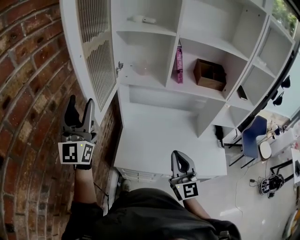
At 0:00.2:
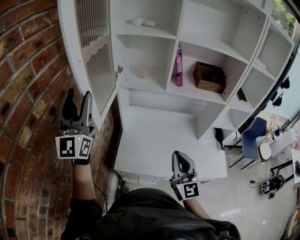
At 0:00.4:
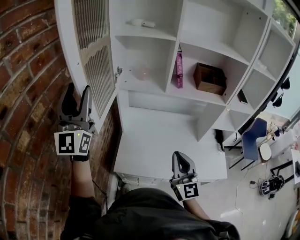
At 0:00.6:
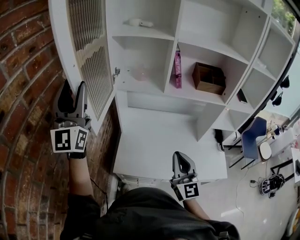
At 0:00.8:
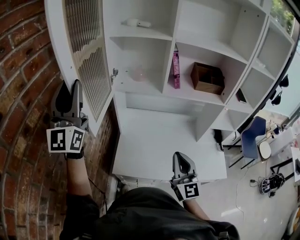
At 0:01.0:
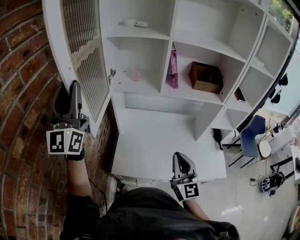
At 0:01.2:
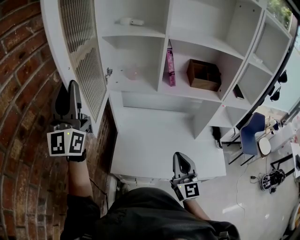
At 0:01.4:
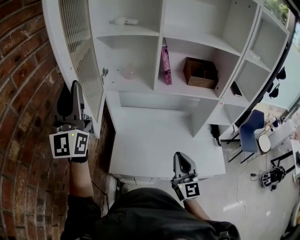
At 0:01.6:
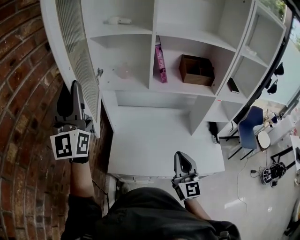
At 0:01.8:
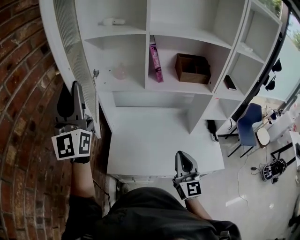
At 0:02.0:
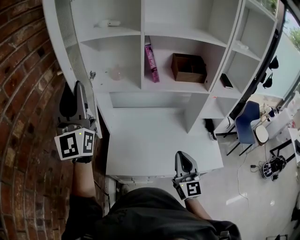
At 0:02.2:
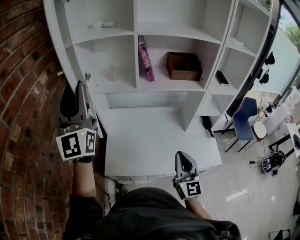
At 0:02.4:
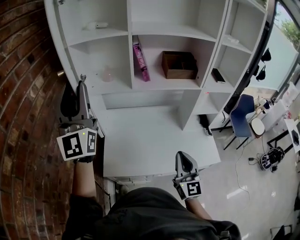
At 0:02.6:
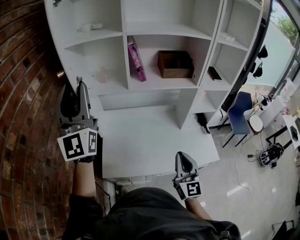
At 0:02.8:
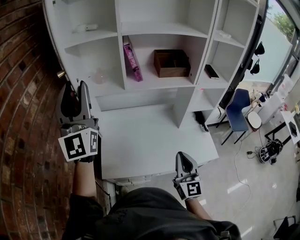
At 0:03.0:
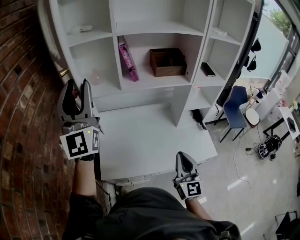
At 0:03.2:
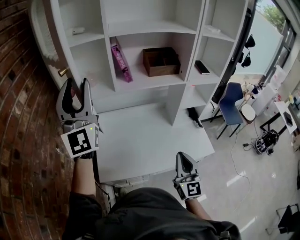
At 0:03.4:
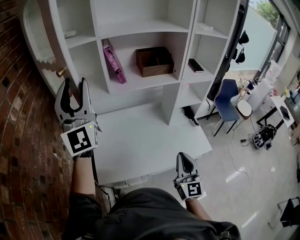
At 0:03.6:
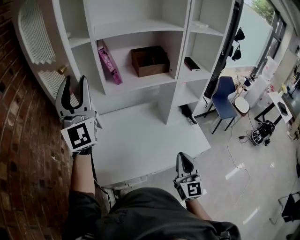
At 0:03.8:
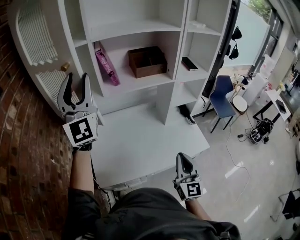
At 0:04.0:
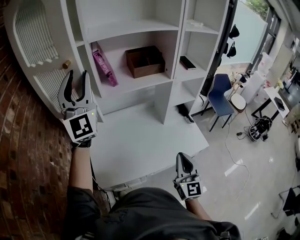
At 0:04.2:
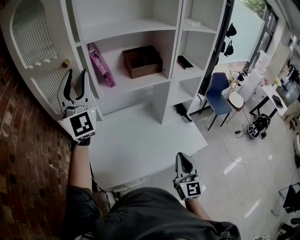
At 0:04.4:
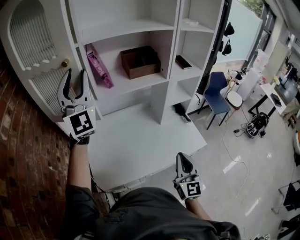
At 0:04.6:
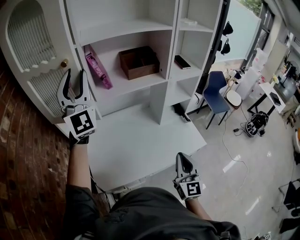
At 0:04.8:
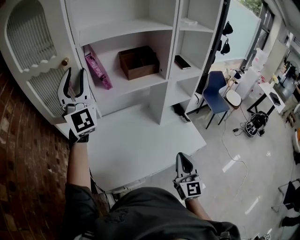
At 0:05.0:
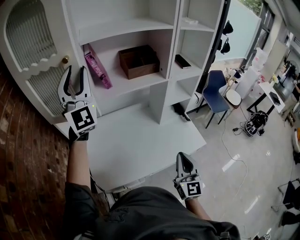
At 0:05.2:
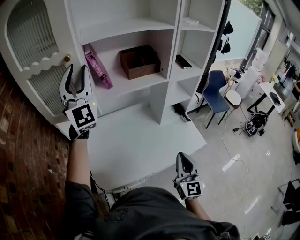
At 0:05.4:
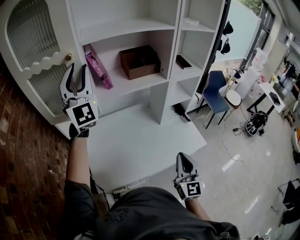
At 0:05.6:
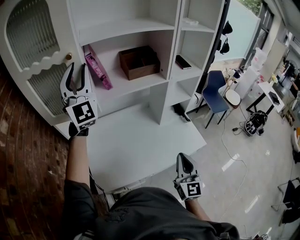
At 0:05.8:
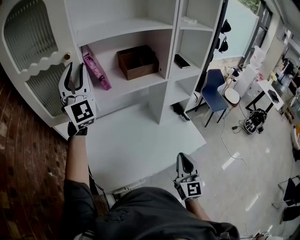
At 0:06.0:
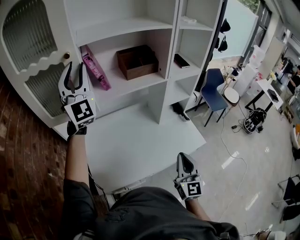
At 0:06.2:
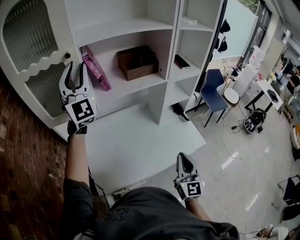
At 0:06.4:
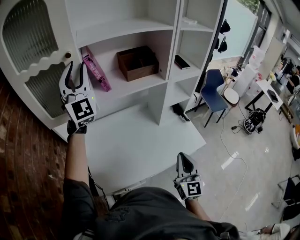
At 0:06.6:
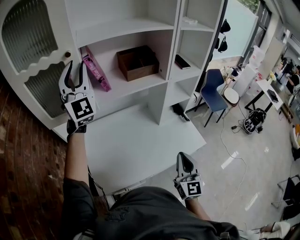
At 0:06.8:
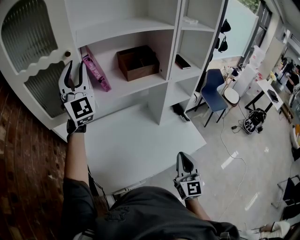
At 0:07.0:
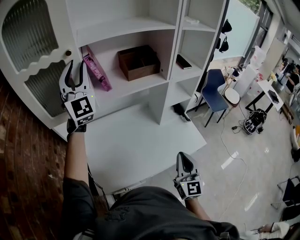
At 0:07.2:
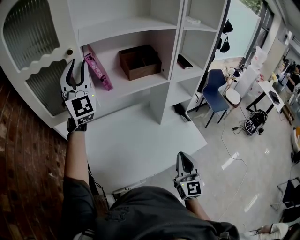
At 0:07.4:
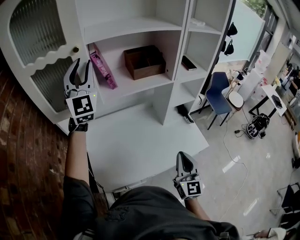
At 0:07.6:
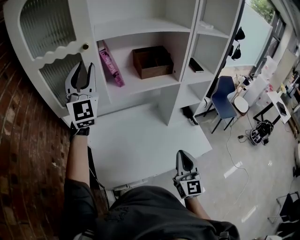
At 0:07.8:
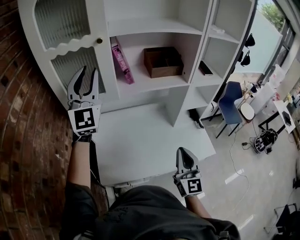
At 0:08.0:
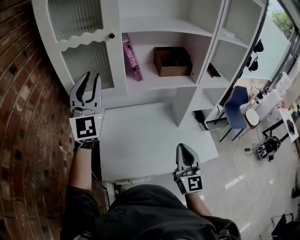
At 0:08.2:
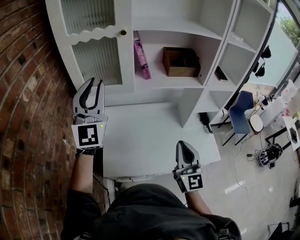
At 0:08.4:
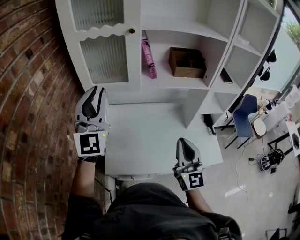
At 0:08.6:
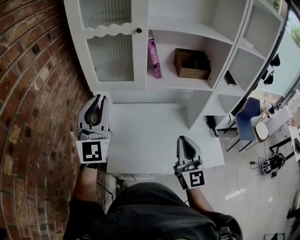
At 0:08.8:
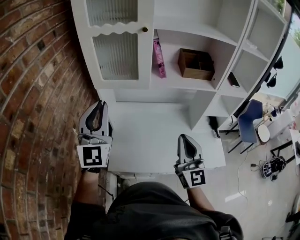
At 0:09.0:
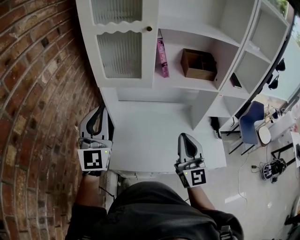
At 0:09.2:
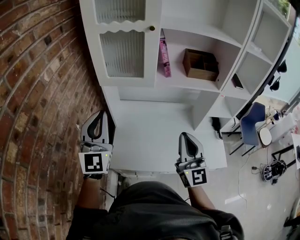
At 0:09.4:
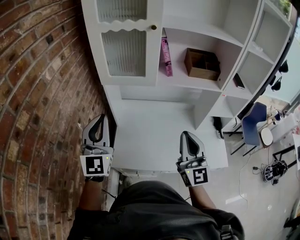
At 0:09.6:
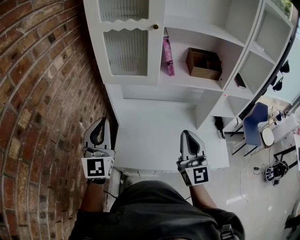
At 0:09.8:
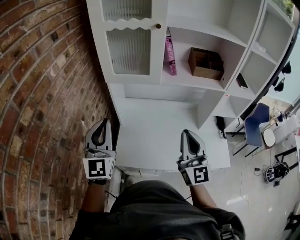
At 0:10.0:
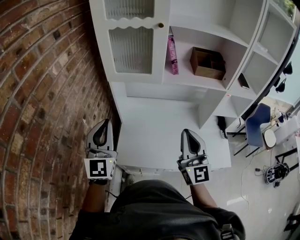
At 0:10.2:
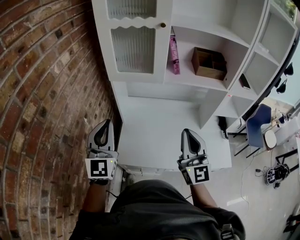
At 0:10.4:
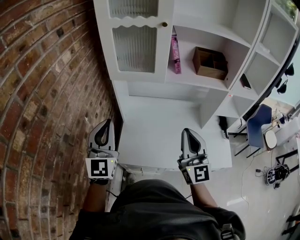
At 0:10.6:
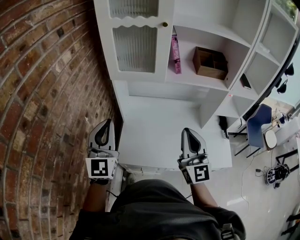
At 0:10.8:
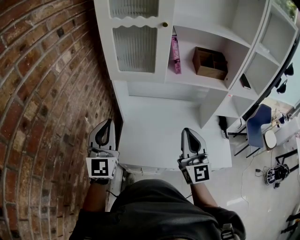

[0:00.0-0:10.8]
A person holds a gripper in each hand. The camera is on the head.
0:00.0 to 0:01.6: The right gripper moves to the right, some 10 cm. Meanwhile the left gripper moves to the right and upward, about 10 cm, and closes its fingers.
0:01.6 to 0:03.0: The left gripper heads to the right, covering about 10 cm. Meanwhile the right gripper travels to the right by some 10 cm.
0:03.0 to 0:04.6: The right gripper changes place by roughly 5 cm, while the left gripper moves forward and to the right, about 15 cm.
0:04.6 to 0:06.2: The left gripper heads forward, covering some 5 cm.
0:06.2 to 0:07.8: The right gripper goes about 5 cm to the left. Meanwhile the left gripper travels backward by approximately 5 cm.
0:07.8 to 0:09.2: The left gripper is displaced backward, downward and to the left by some 25 cm, while the right gripper heads to the left and upward, covering about 10 cm, and turns by about 20 degrees.
0:09.2 to 0:10.8: The left gripper moves approximately 5 cm.

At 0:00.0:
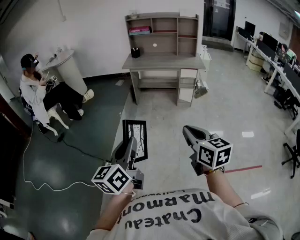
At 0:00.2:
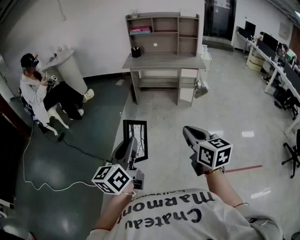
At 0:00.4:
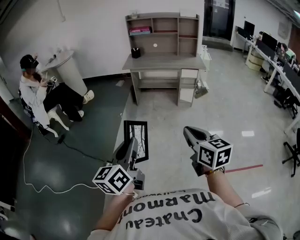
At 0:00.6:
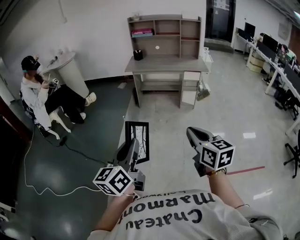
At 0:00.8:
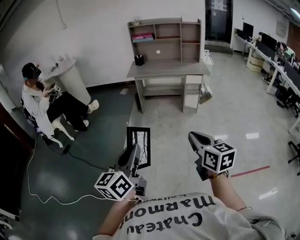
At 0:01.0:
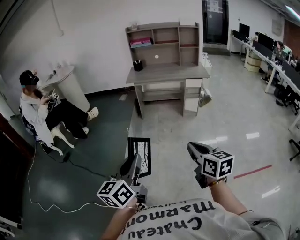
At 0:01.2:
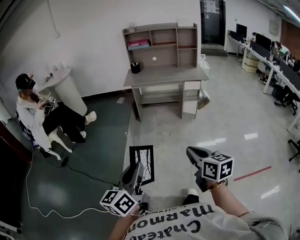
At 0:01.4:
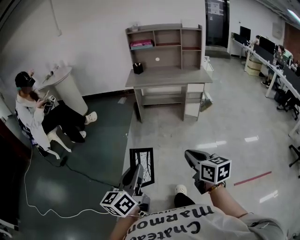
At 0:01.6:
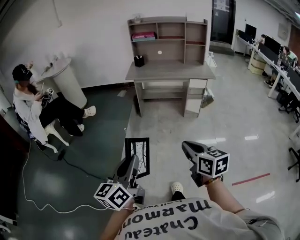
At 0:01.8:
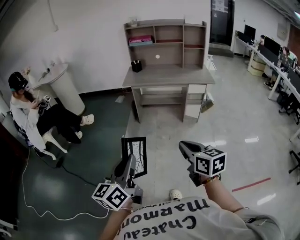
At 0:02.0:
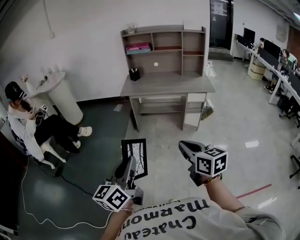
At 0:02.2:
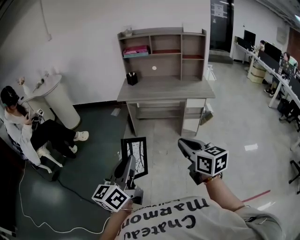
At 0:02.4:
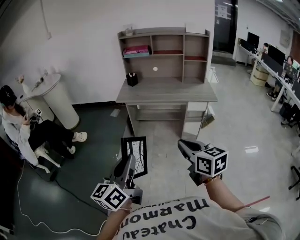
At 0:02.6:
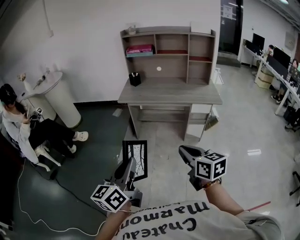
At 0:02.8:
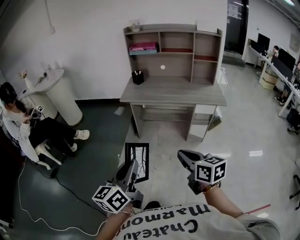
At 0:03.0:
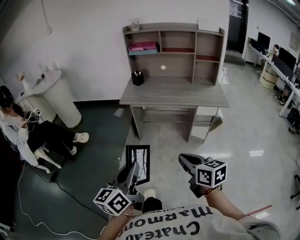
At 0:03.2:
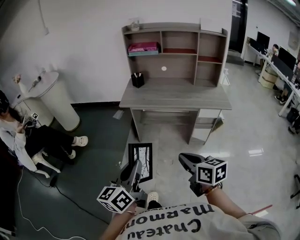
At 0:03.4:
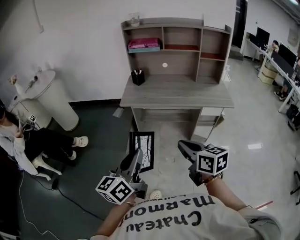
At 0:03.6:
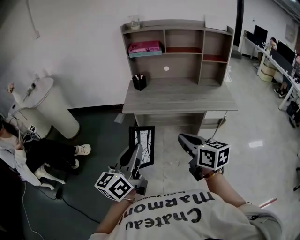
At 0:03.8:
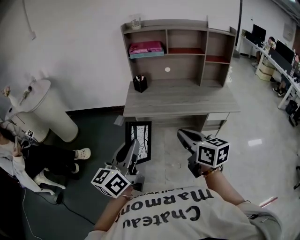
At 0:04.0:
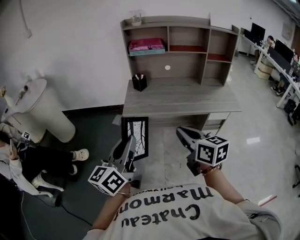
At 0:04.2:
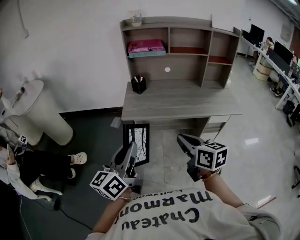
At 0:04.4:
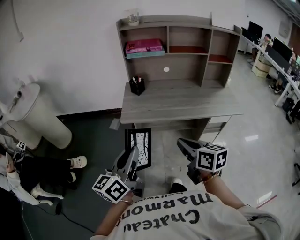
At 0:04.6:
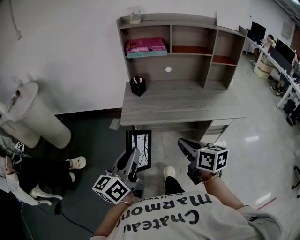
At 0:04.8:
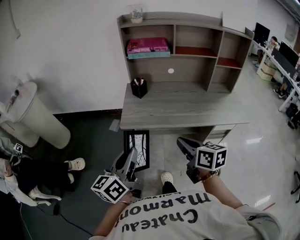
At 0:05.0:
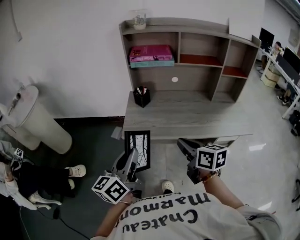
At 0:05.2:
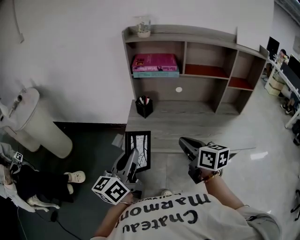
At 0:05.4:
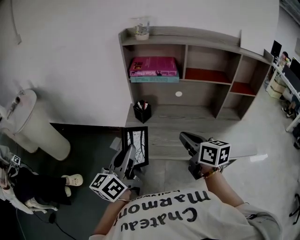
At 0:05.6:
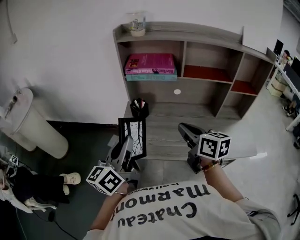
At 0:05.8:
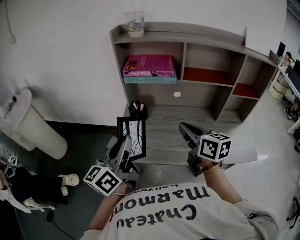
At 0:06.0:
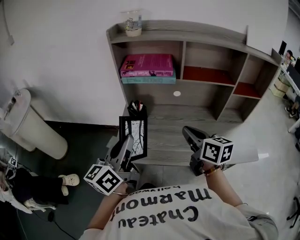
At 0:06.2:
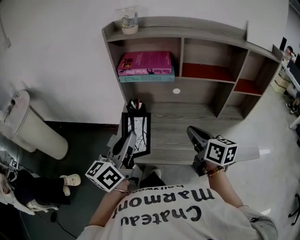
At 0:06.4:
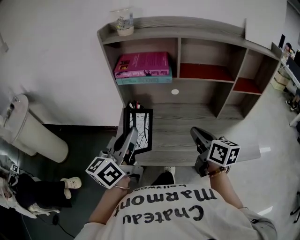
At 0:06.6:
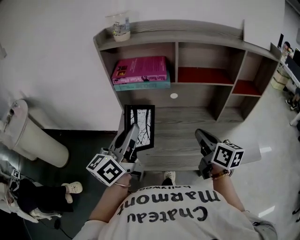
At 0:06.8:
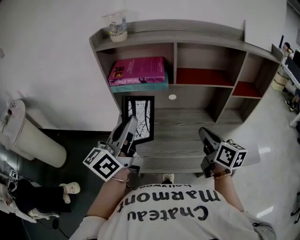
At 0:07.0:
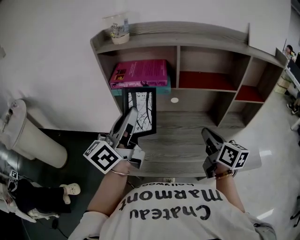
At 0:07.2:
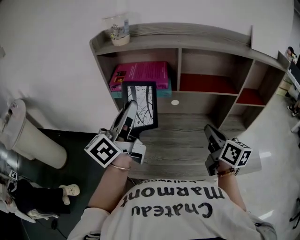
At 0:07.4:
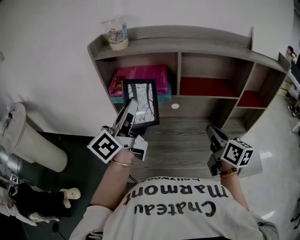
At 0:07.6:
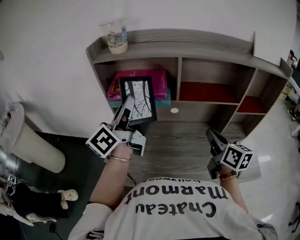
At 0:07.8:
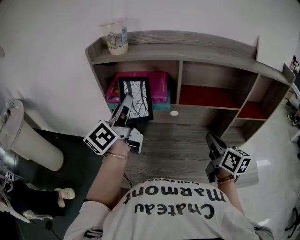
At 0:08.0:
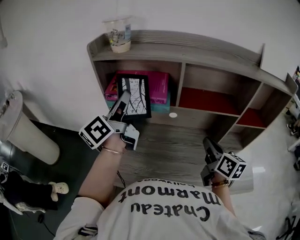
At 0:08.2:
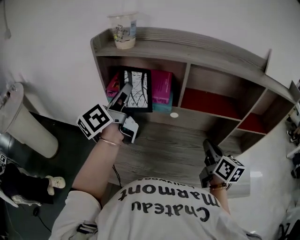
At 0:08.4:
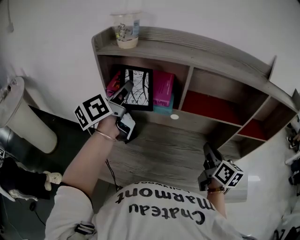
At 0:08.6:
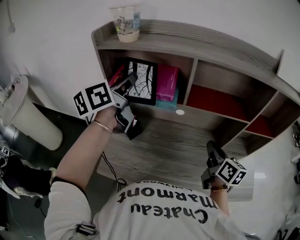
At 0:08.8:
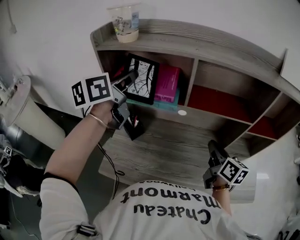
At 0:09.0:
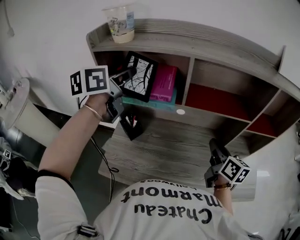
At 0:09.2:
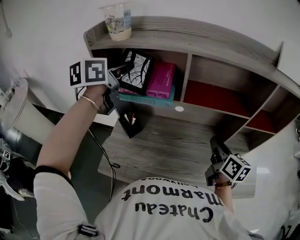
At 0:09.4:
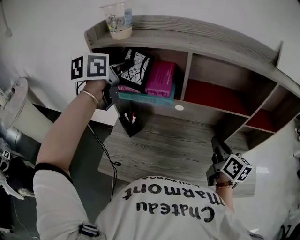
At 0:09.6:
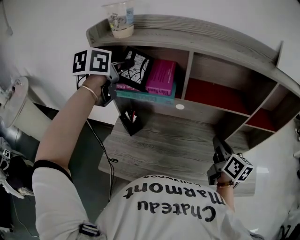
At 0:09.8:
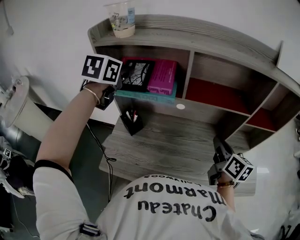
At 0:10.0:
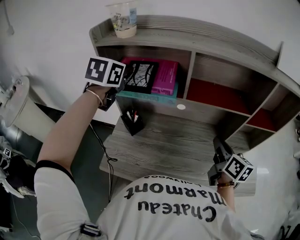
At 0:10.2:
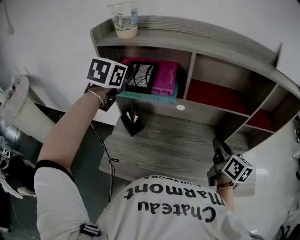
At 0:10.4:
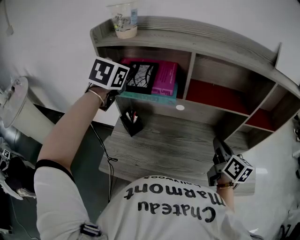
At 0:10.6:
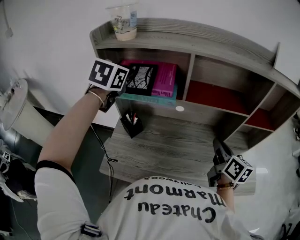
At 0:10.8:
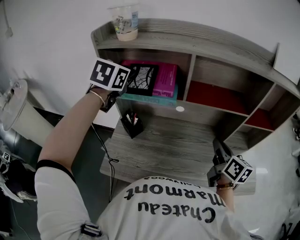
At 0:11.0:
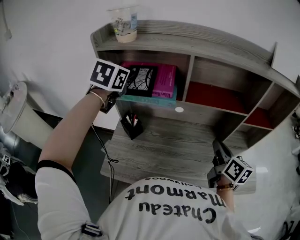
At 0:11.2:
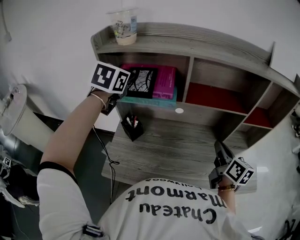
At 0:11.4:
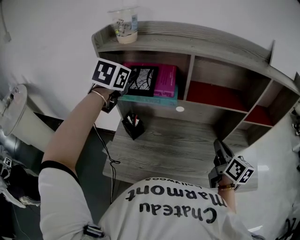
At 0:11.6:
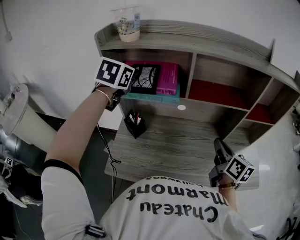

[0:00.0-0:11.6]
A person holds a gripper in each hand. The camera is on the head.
0:00.0 to 0:01.4: The right gripper is displaced forward, to the left and downward by approximately 15 cm. Meanwhile the left gripper moves to the left, forward and downward, approximately 15 cm.
0:01.4 to 0:02.8: Both grippers move forward, some 30 cm.
0:02.8 to 0:04.4: Both grippers travel together forward, about 35 cm.
0:04.4 to 0:05.8: Both grippers move forward, some 30 cm.
0:05.8 to 0:07.2: The left gripper heads forward, upward and to the right, covering some 20 cm. The right gripper shifts roughly 15 cm to the right and forward.
0:07.2 to 0:08.8: The left gripper is displaced forward by about 15 cm, and rotates about 30 degrees; the right gripper goes roughly 10 cm forward and downward.
0:08.8 to 0:10.2: The left gripper moves approximately 5 cm, rotates approximately 40 degrees, and opens, then closes again.
0:10.2 to 0:11.6: The grippers make only small movements.

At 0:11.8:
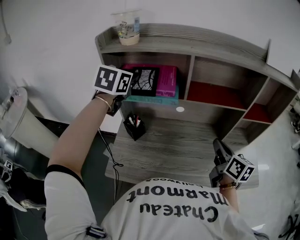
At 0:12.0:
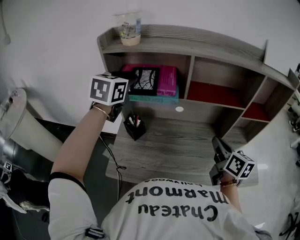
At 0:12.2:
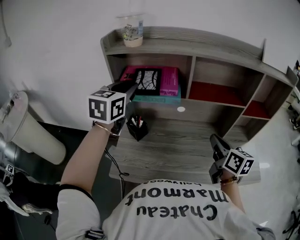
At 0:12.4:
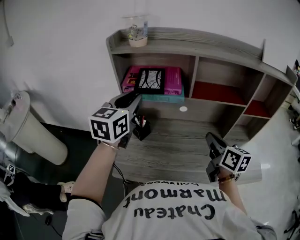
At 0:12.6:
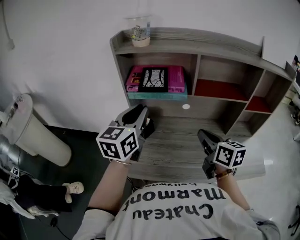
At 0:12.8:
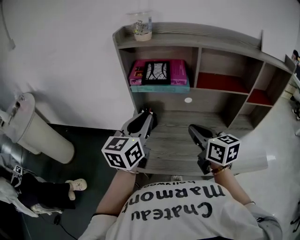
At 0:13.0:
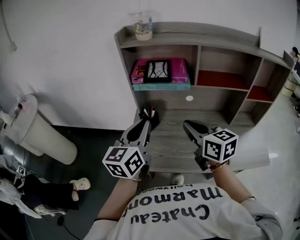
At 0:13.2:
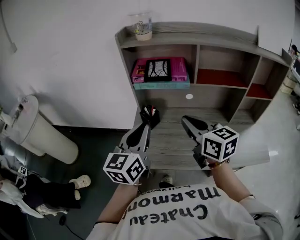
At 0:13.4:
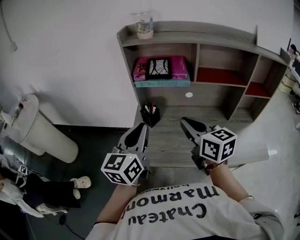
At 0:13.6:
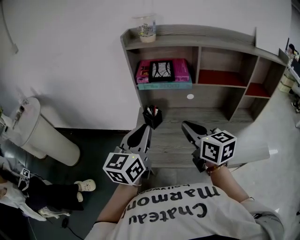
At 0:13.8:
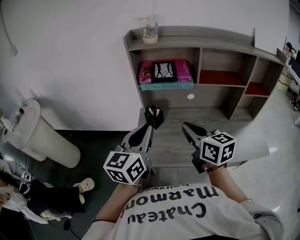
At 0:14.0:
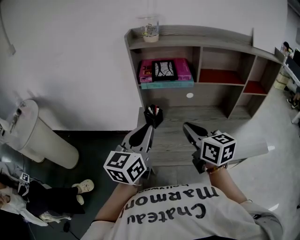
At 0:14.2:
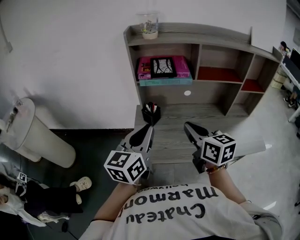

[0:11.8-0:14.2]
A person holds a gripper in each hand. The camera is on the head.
0:11.8 to 0:13.0: The left gripper goes about 25 cm backward, and rotates approximately 40 degrees. The right gripper moves to the left, some 20 cm, and turns by approximately 30 degrees.
0:13.0 to 0:14.2: The grippers both shift backward by roughly 5 cm.
